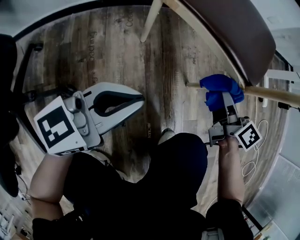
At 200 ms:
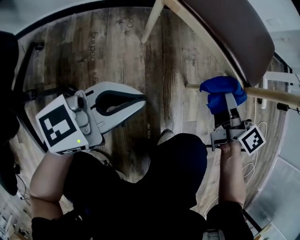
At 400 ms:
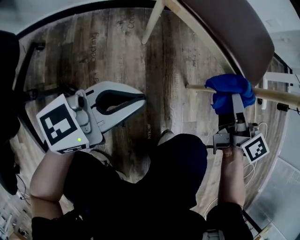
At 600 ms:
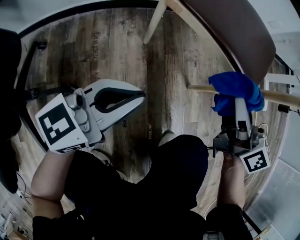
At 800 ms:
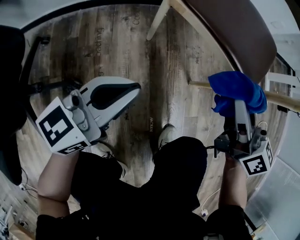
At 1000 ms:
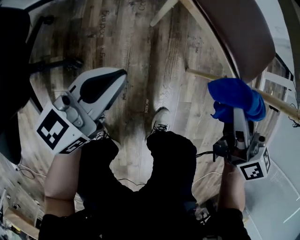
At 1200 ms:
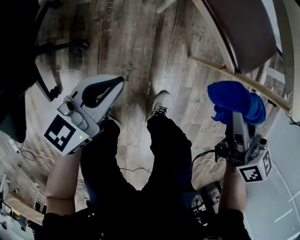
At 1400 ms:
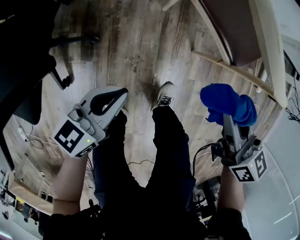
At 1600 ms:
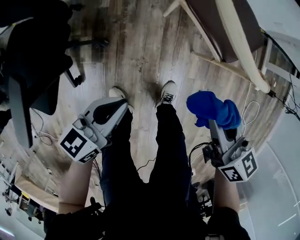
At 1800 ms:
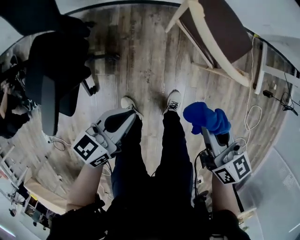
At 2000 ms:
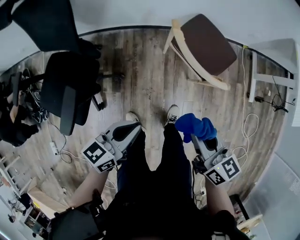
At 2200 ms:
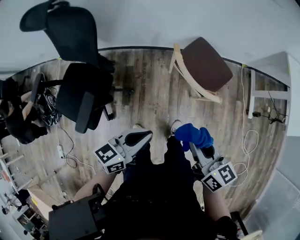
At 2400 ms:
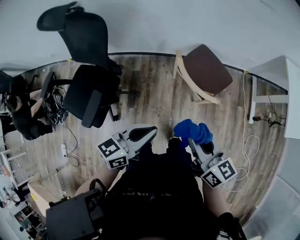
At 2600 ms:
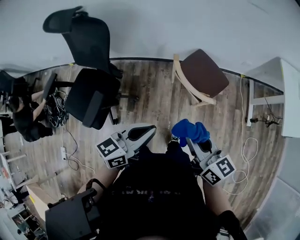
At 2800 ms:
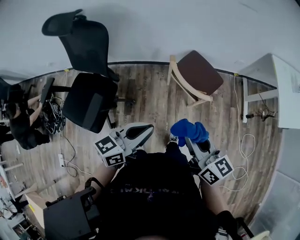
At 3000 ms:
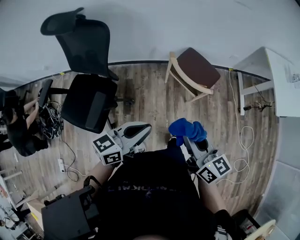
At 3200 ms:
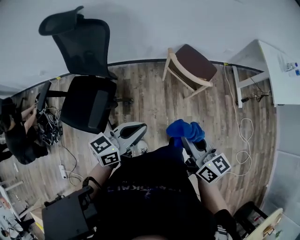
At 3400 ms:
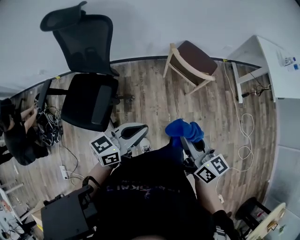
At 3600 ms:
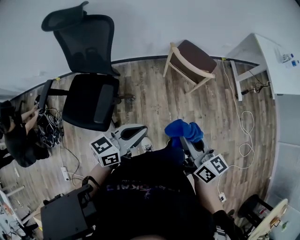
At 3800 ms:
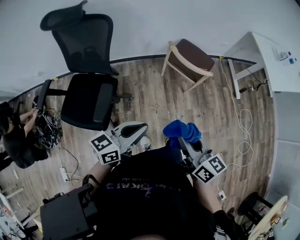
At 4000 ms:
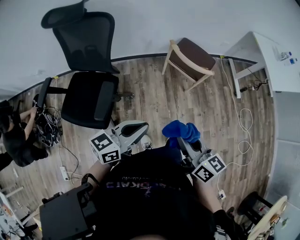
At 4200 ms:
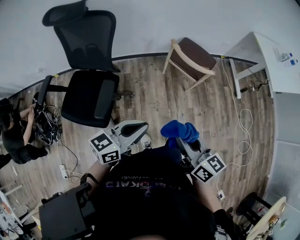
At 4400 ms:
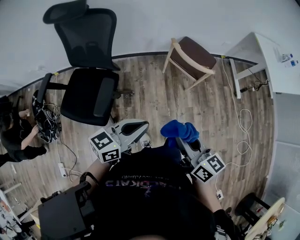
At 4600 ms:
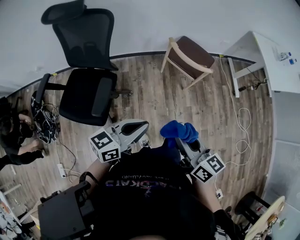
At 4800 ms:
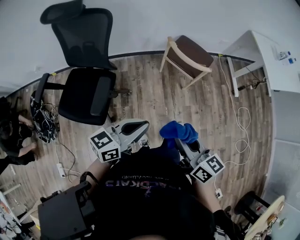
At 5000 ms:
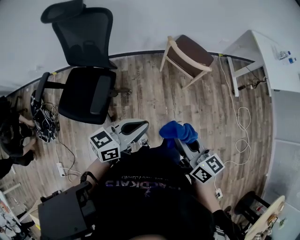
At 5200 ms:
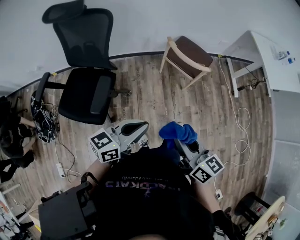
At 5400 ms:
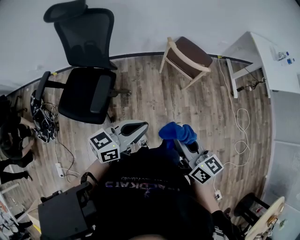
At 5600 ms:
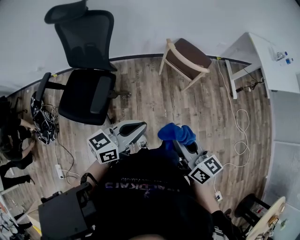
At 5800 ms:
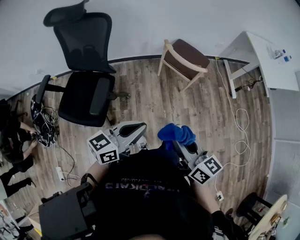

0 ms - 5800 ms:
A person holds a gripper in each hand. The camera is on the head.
0 ms - 1400 ms: The right gripper travels upward by about 30 cm, and swivels about 40 degrees. Meanwhile the left gripper is displaced upward by some 15 cm, and changes its angle by approximately 30 degrees.
1400 ms - 2800 ms: The grippers both shift upward by roughly 40 cm.
2800 ms - 4400 ms: Both grippers move backward and to the left, roughly 20 cm.
4400 ms - 5800 ms: Both grippers stay put.

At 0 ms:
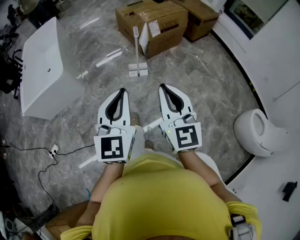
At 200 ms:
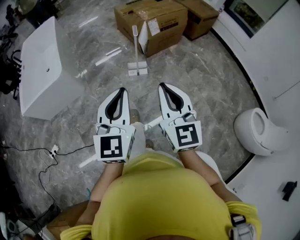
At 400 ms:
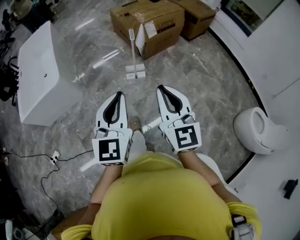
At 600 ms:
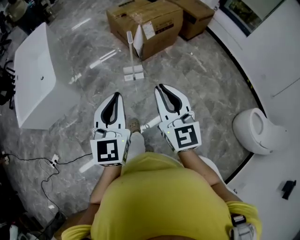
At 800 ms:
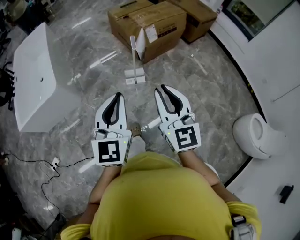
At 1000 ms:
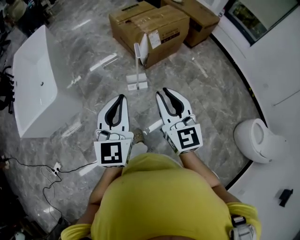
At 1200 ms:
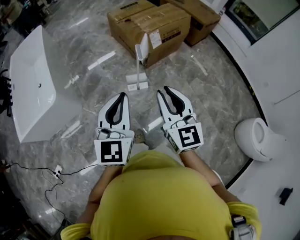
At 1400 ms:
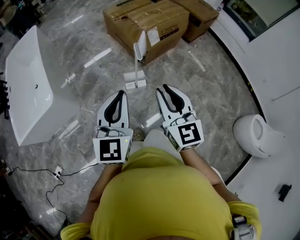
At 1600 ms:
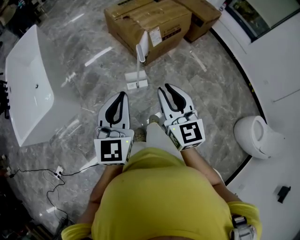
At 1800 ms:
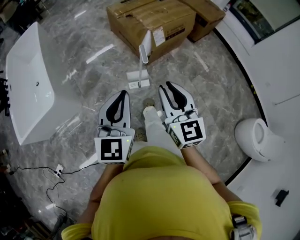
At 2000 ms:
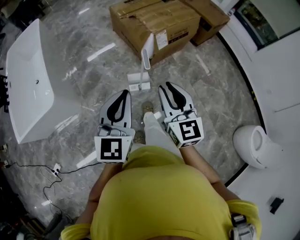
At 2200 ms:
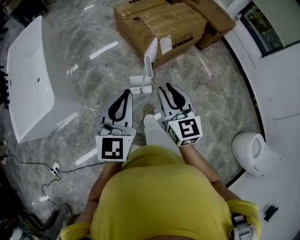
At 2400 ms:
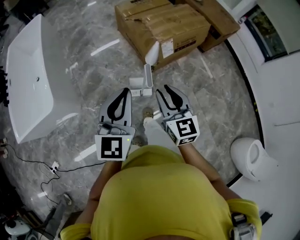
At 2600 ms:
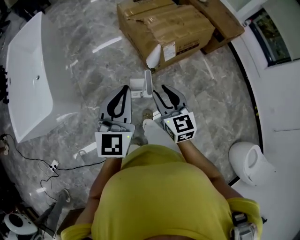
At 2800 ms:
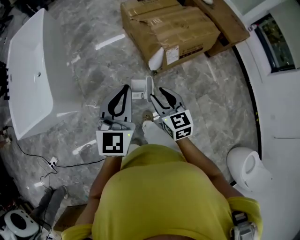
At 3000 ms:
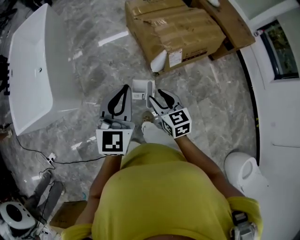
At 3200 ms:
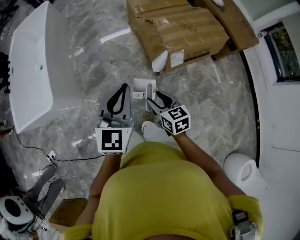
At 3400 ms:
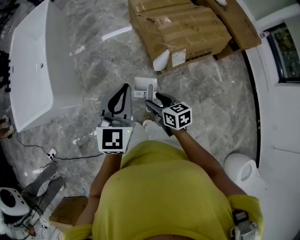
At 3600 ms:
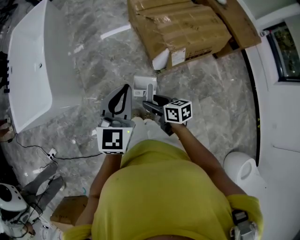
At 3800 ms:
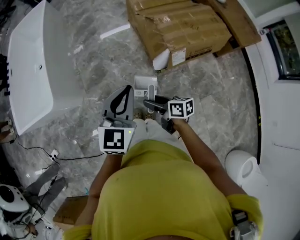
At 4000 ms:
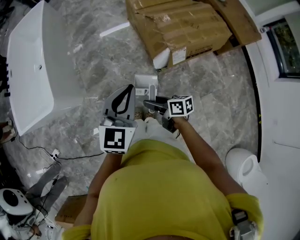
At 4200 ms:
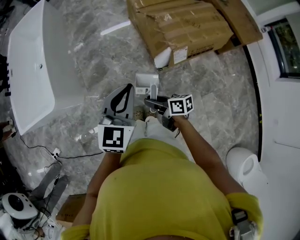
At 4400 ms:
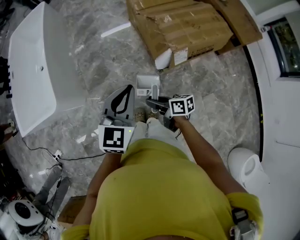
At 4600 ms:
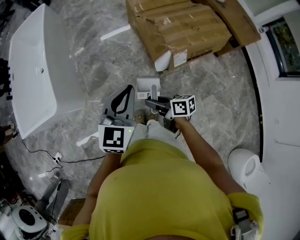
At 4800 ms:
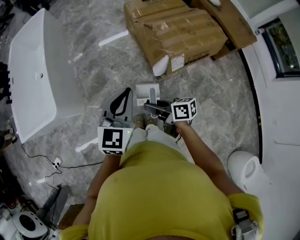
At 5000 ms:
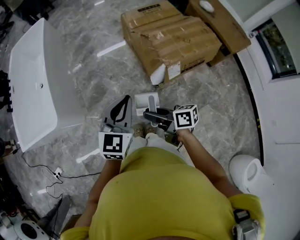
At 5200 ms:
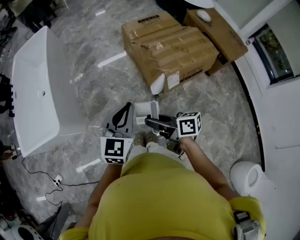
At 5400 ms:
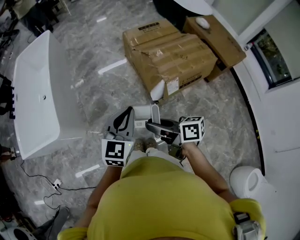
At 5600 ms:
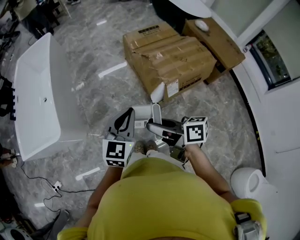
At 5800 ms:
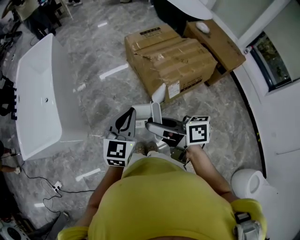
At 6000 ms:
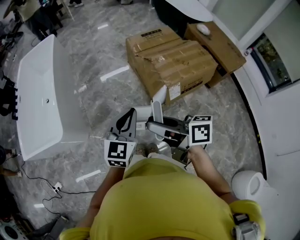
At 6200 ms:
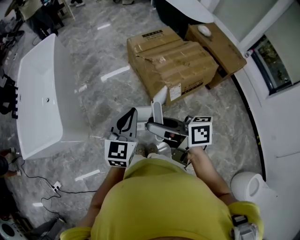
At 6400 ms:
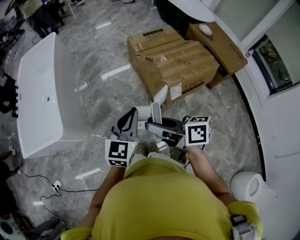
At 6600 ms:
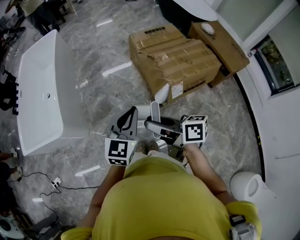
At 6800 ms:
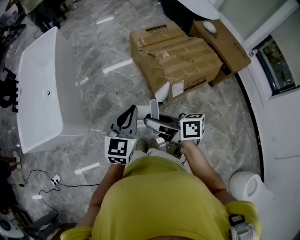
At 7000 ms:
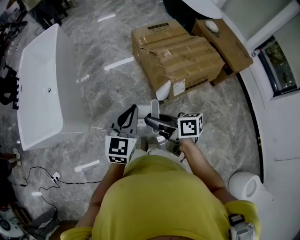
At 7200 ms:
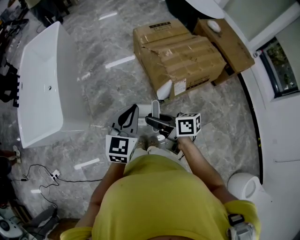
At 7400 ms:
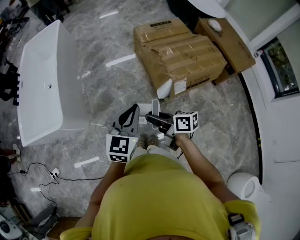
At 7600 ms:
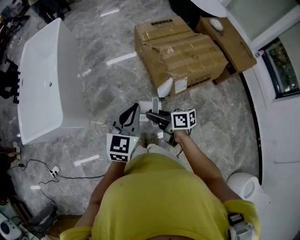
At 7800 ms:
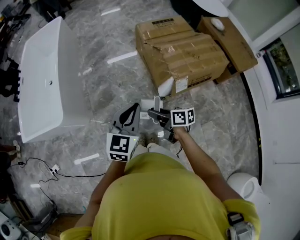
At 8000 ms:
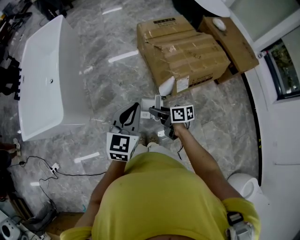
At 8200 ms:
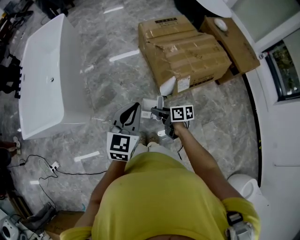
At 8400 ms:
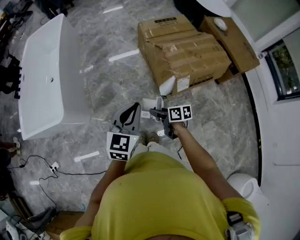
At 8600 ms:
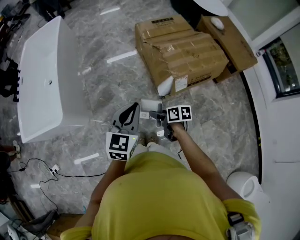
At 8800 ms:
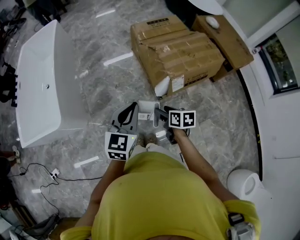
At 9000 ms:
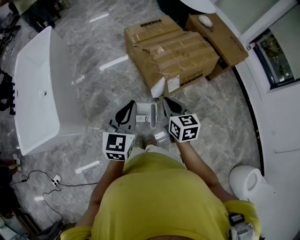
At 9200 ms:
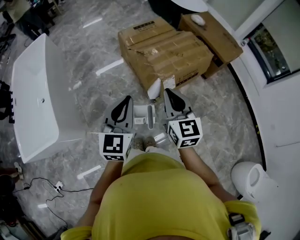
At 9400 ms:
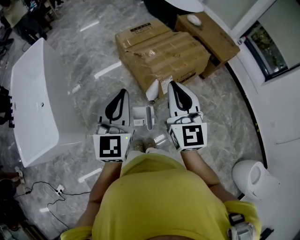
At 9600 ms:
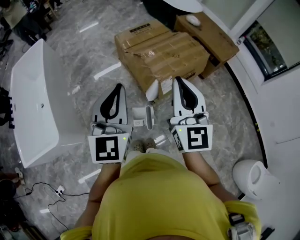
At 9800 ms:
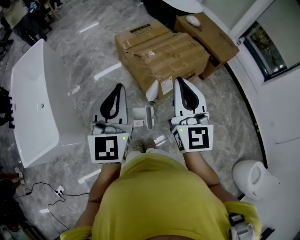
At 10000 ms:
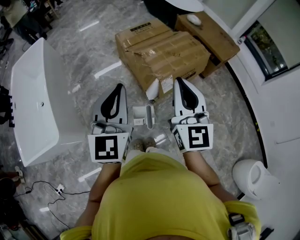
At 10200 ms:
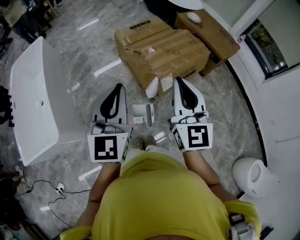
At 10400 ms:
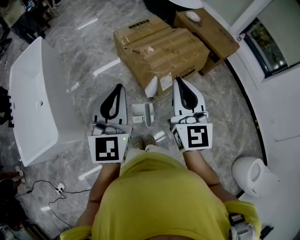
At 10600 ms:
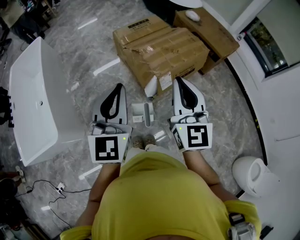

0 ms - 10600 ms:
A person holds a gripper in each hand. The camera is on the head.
0 ms - 1600 ms: The grippers both shift forward by approximately 30 cm.
1600 ms - 3000 ms: The right gripper shifts about 35 cm forward and downward, and changes its angle by about 30 degrees, while the left gripper heads forward, covering about 30 cm.
3000 ms - 4600 ms: The left gripper changes place by about 5 cm, while the right gripper heads downward, covering some 5 cm, and turns by approximately 50 degrees.
4600 ms - 6000 ms: The right gripper heads upward, covering some 25 cm.
6000 ms - 7600 ms: The right gripper is displaced downward by about 20 cm.
7600 ms - 9000 ms: The right gripper travels to the right and upward by about 10 cm, swivels about 50 degrees, and closes its fingers.
9000 ms - 10600 ms: The left gripper is displaced upward by approximately 15 cm. The right gripper goes some 20 cm upward, and swivels approximately 40 degrees.

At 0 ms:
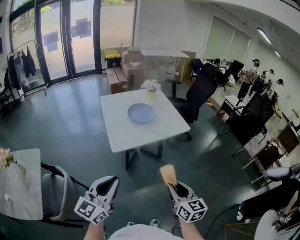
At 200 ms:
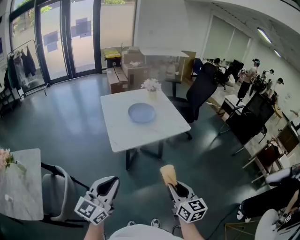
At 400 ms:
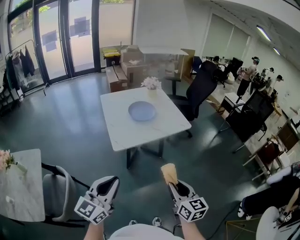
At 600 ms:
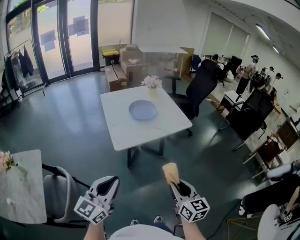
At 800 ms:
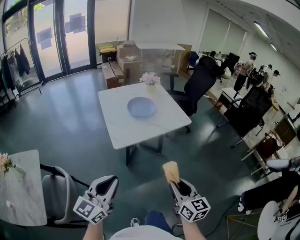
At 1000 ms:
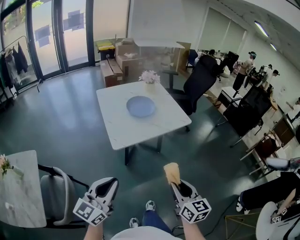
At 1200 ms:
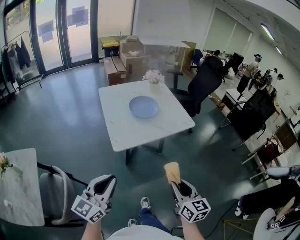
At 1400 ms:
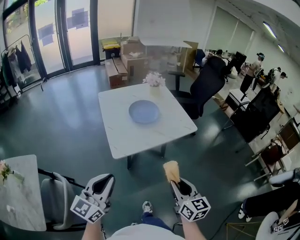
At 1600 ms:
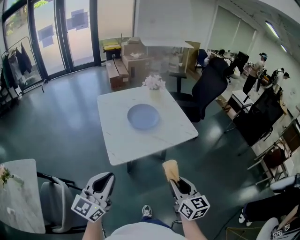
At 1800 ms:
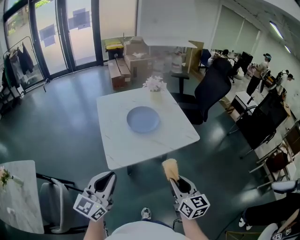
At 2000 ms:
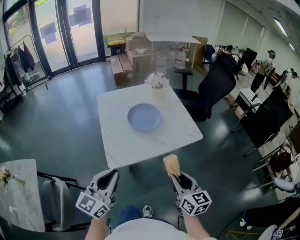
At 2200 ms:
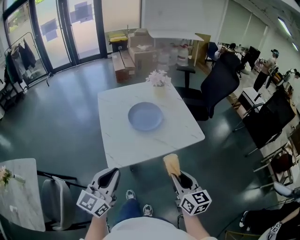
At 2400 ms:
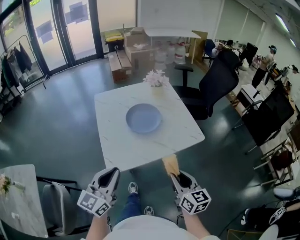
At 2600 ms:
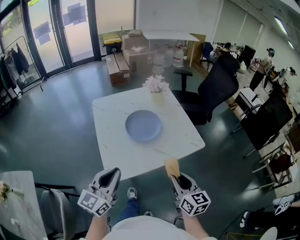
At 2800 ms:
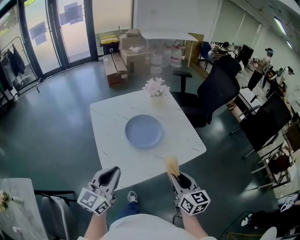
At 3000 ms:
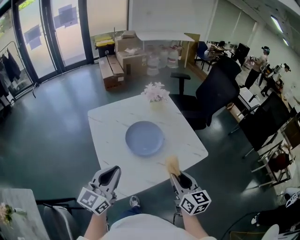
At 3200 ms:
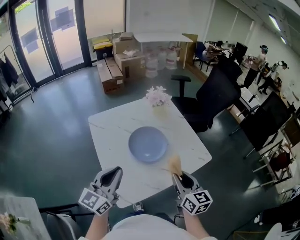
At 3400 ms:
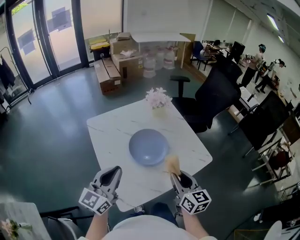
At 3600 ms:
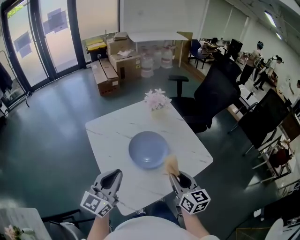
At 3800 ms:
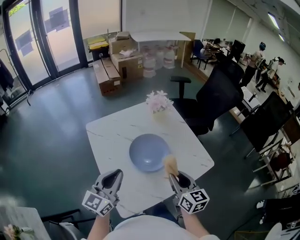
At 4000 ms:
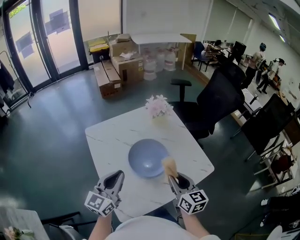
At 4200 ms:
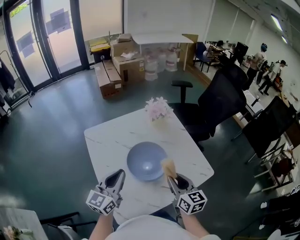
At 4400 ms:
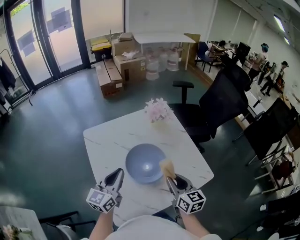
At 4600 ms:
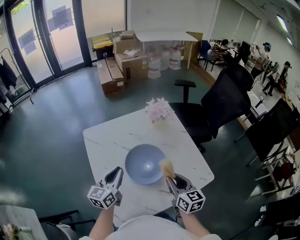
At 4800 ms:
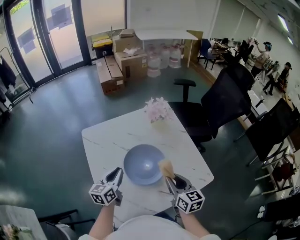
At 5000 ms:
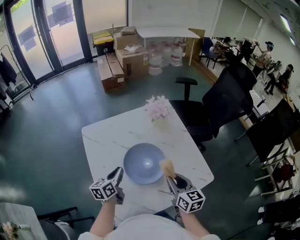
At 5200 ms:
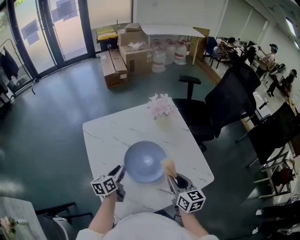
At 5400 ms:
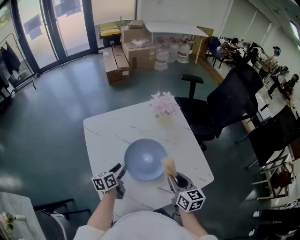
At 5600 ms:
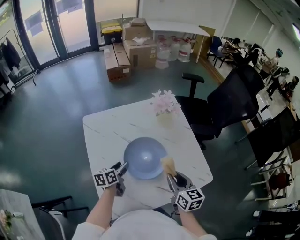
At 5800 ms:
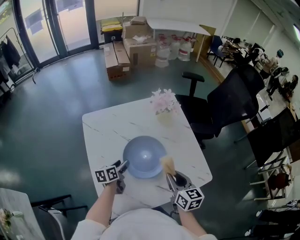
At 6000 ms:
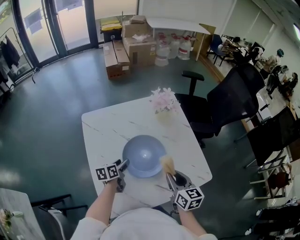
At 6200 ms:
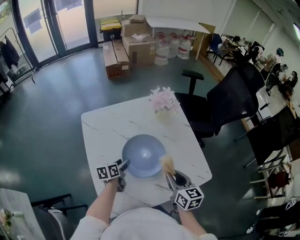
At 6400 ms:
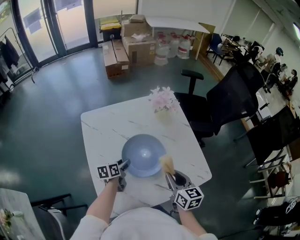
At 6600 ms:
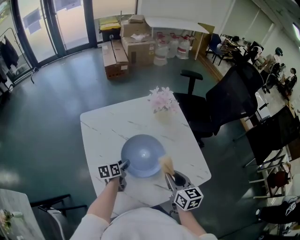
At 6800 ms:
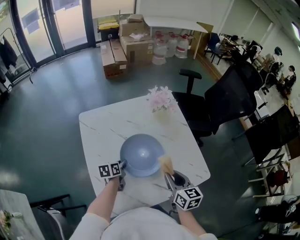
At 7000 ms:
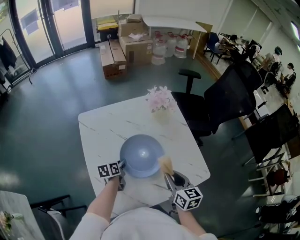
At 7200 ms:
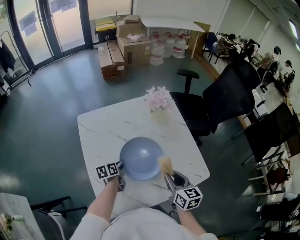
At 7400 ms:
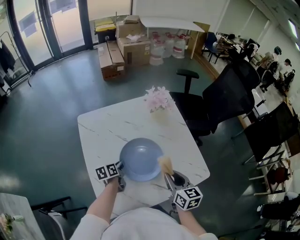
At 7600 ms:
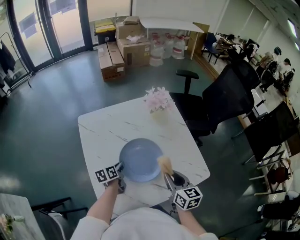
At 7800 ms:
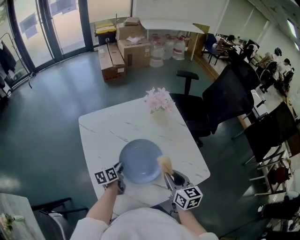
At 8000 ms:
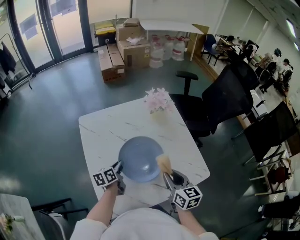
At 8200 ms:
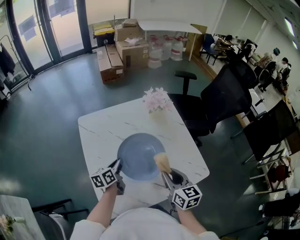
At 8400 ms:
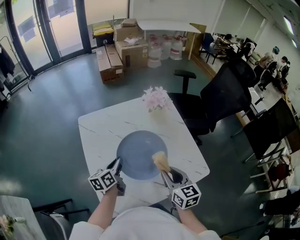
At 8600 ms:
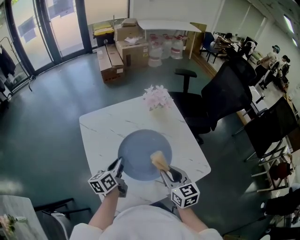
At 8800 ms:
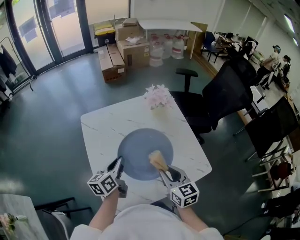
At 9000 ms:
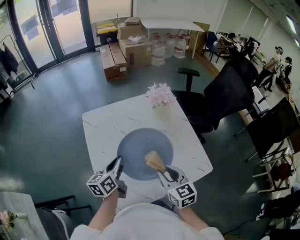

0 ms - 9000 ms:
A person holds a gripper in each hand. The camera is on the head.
0 ms - 1600 ms: Both grippers move forward, about 15 cm.
1600 ms - 3000 ms: The two grippers go roughly 25 cm forward.
3000 ms - 4400 ms: The two grippers go approximately 20 cm forward.
4400 ms - 6000 ms: The left gripper heads downward, covering some 20 cm, tilts its fingers approximately 30 degrees downward, and opens its fingers; the right gripper moves approximately 5 cm.
6000 ms - 7600 ms: The left gripper closes up.
7600 ms - 9000 ms: The right gripper travels to the left by roughly 5 cm. Meanwhile the left gripper moves upward, roughly 15 cm, and swivels roughly 30 degrees.
